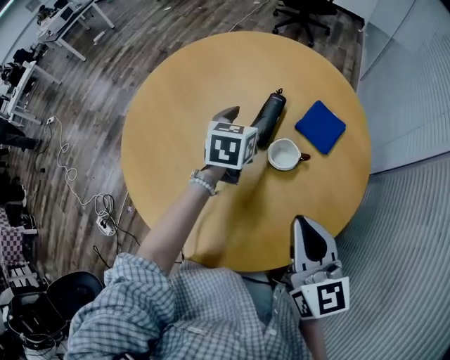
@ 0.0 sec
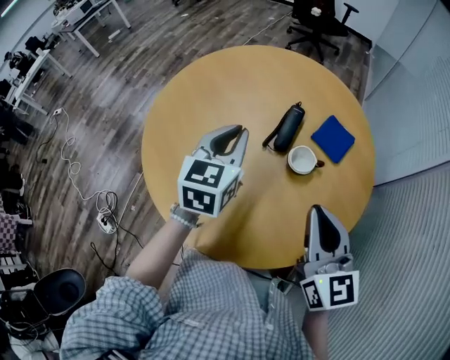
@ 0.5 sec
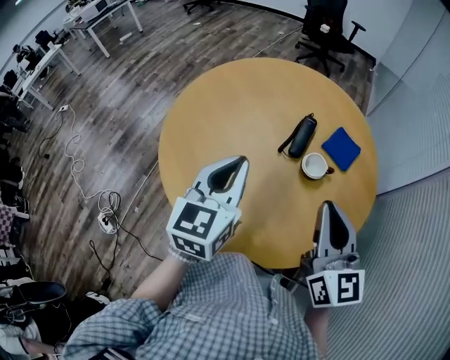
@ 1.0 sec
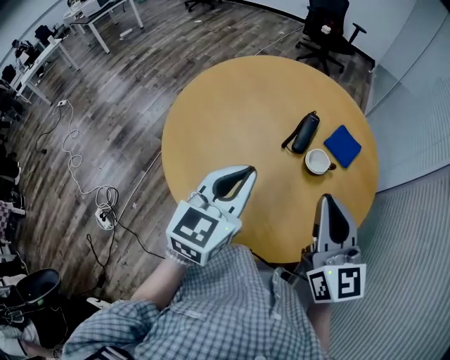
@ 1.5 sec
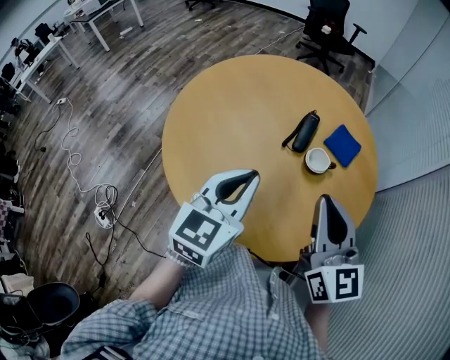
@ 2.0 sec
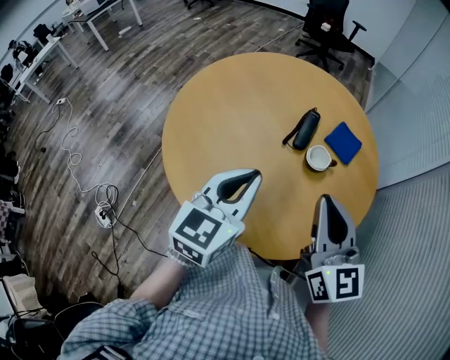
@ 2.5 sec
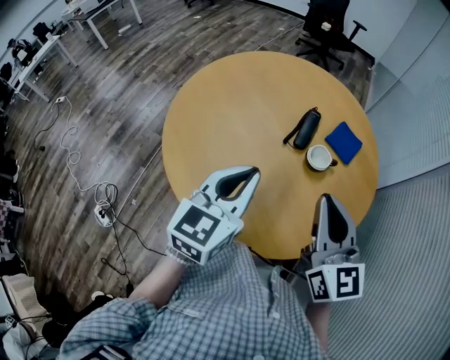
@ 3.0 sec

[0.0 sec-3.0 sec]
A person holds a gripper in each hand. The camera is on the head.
0.0 sec to 1.5 sec: The right gripper moves to the left and upward, approximately 15 cm. The left gripper is displaced backward, upward and to the left by some 35 cm, turns by about 20 degrees, and closes its fingers.
1.5 sec to 3.0 sec: There are only small adjustments of the grippers.

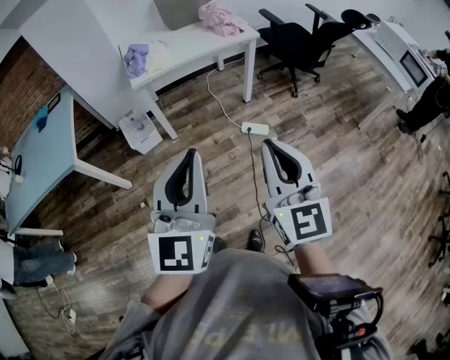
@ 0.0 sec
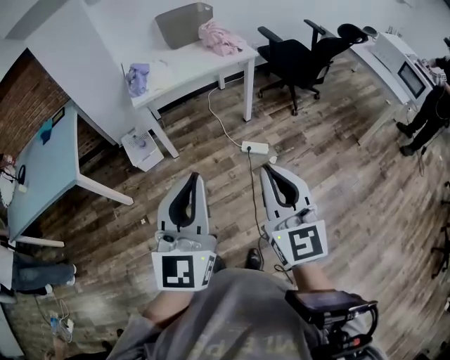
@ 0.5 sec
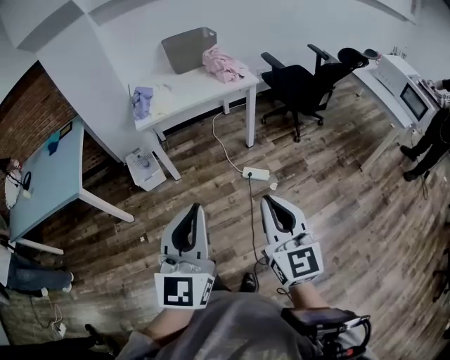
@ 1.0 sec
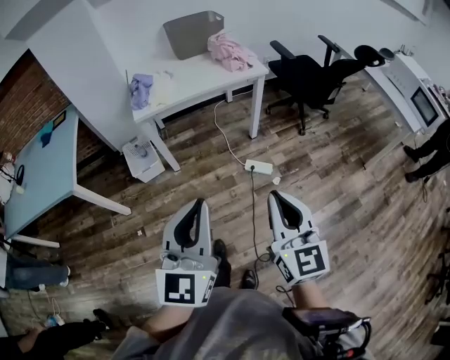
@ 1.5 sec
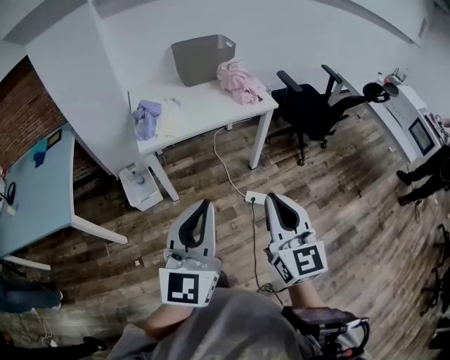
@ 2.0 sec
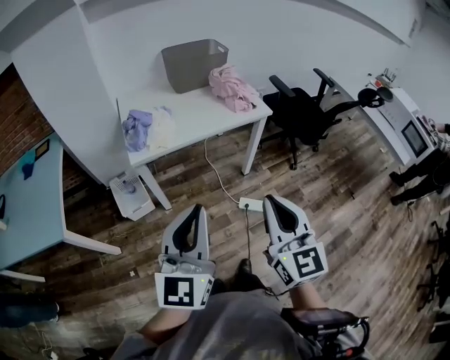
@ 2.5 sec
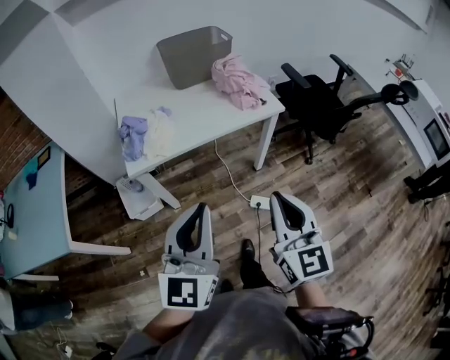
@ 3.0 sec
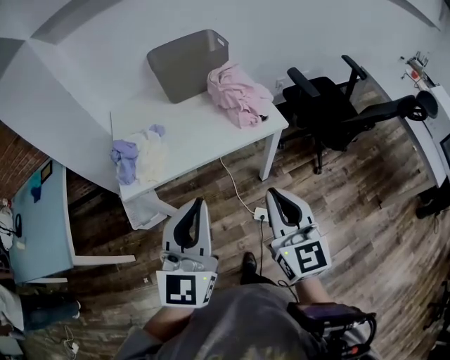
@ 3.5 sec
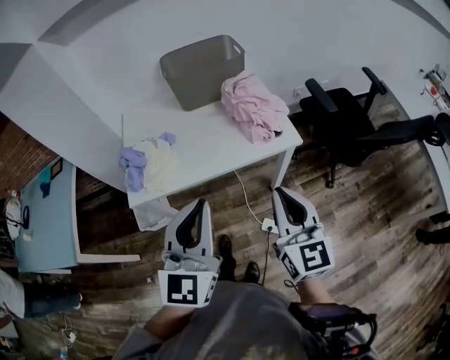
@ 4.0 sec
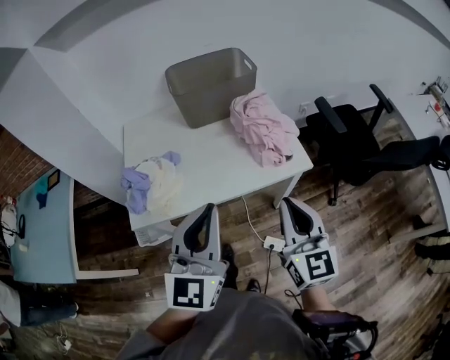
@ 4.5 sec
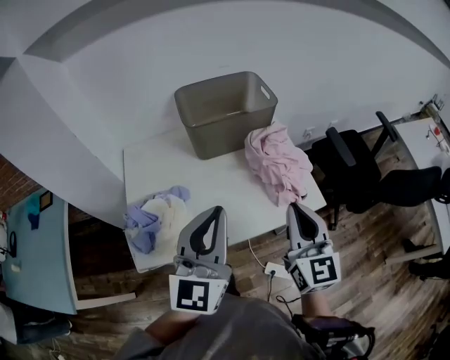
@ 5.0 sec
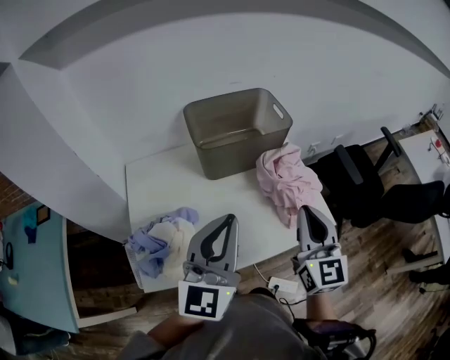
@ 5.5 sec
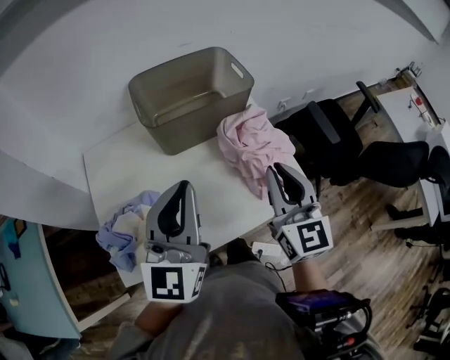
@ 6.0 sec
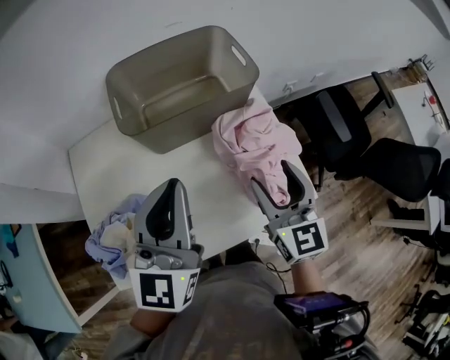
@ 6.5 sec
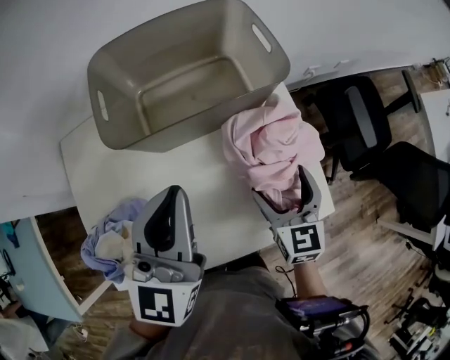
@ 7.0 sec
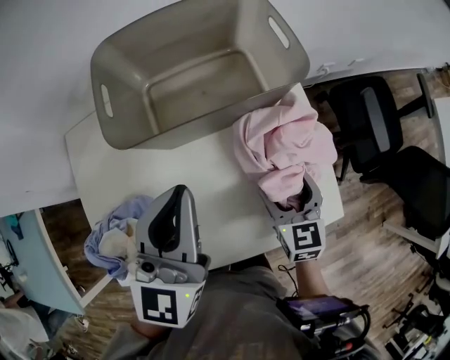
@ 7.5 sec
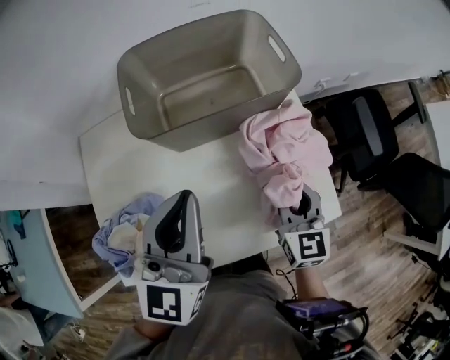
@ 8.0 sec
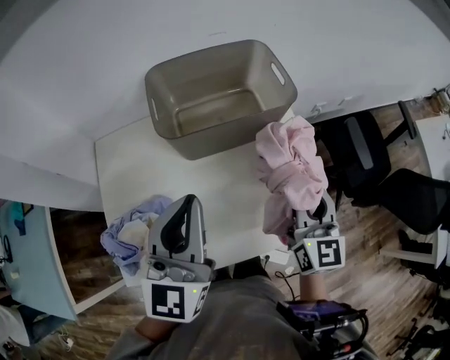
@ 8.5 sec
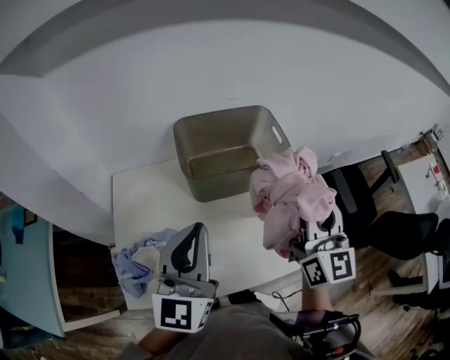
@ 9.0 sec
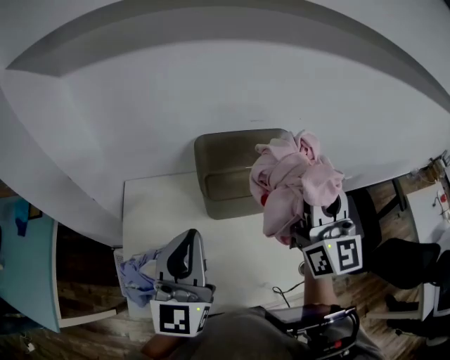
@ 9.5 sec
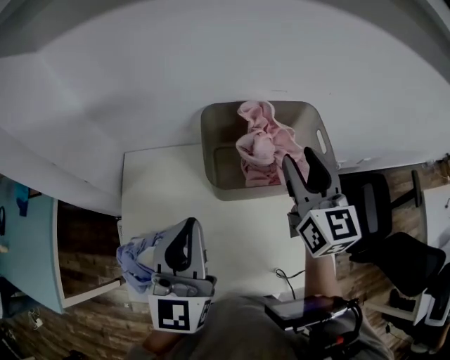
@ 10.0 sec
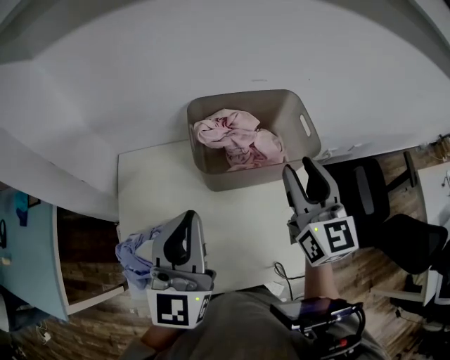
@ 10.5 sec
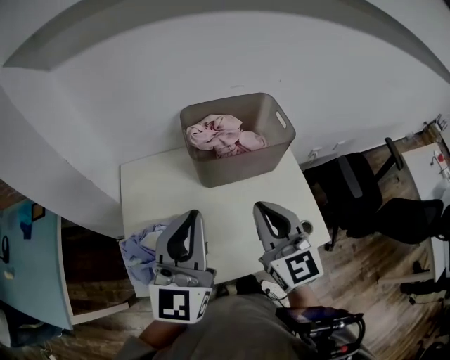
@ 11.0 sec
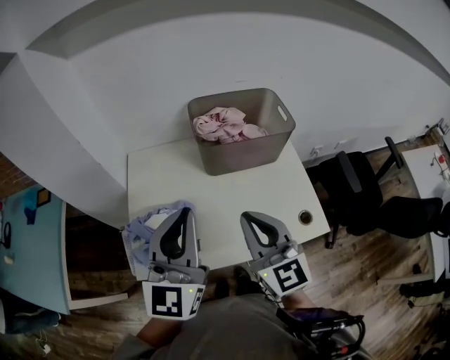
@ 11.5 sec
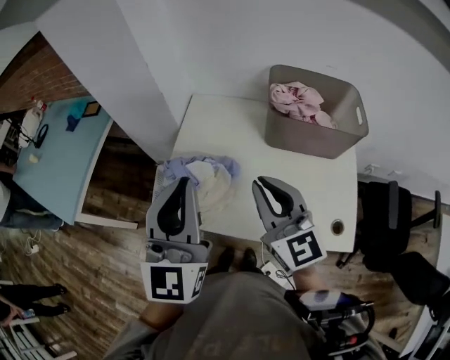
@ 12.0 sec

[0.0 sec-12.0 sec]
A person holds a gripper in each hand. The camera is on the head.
0.0 sec to 2.0 sec: Both grippers travel together forward, about 20 cm.
2.0 sec to 4.0 sec: Both grippers travel together forward, roughly 35 cm.
4.0 sec to 6.0 sec: Both grippers move forward, approximately 30 cm.
6.0 sec to 8.0 sec: The right gripper travels downward and forward by some 20 cm, and opens, then closes once more. The left gripper moves forward and downward, roughly 10 cm.
8.0 sec to 10.0 sec: The right gripper heads upward, forward and to the left, covering roughly 30 cm, and turns by about 20 degrees, while the left gripper travels to the left and upward by roughly 15 cm.
10.0 sec to 12.0 sec: The right gripper ends up about 30 cm from where it was, changes its angle by approximately 30 degrees, and closes up; the left gripper ends up some 25 cm from where it was, and turns by roughly 20 degrees.

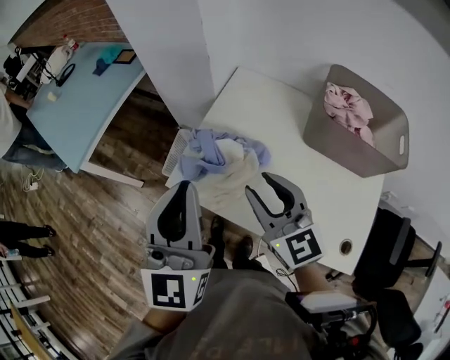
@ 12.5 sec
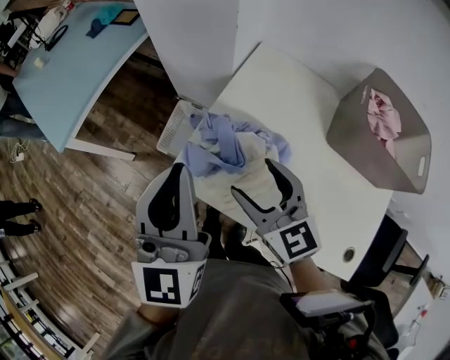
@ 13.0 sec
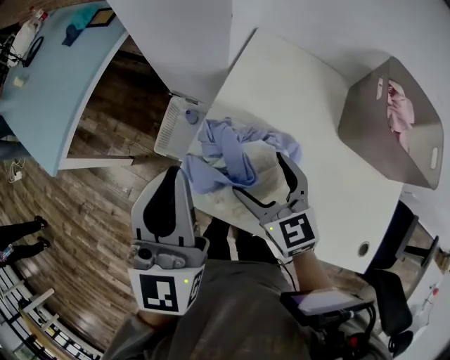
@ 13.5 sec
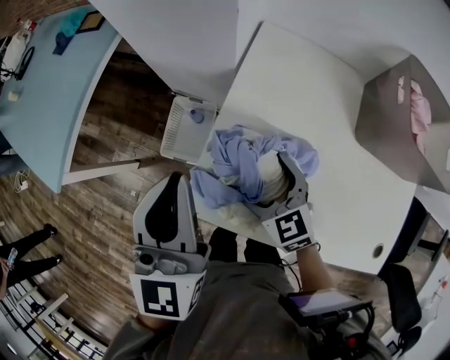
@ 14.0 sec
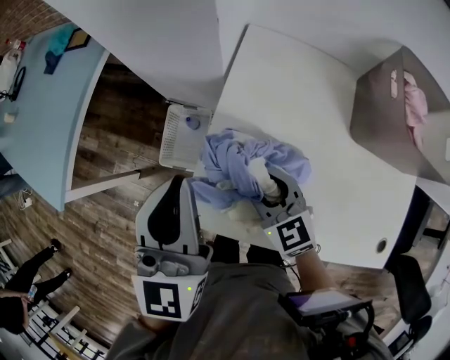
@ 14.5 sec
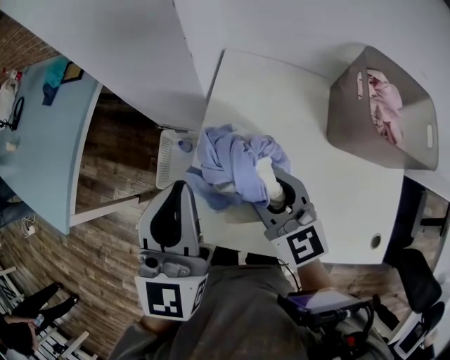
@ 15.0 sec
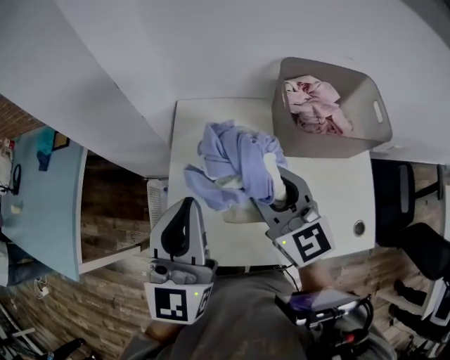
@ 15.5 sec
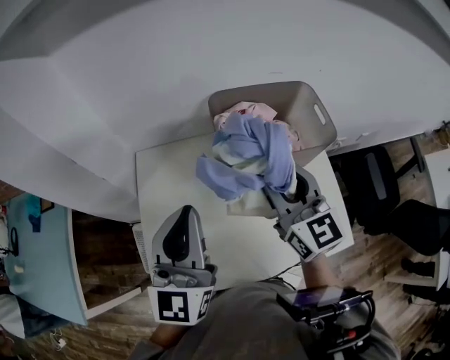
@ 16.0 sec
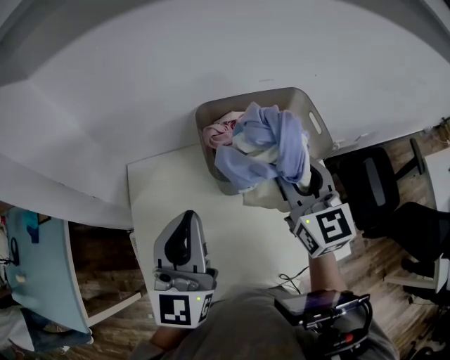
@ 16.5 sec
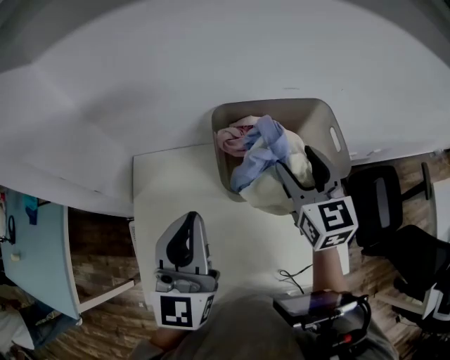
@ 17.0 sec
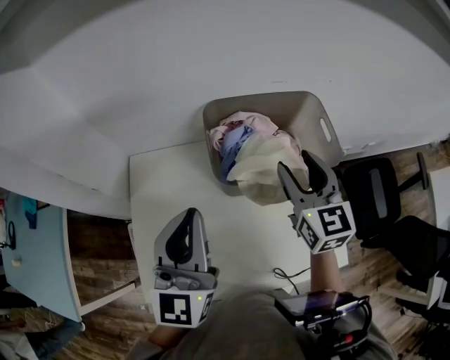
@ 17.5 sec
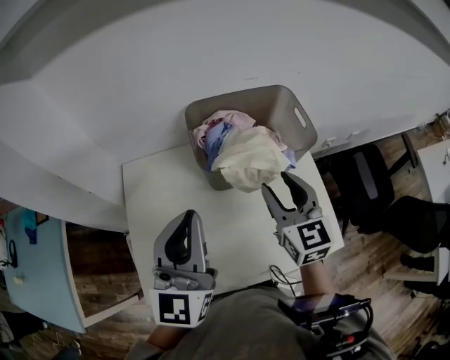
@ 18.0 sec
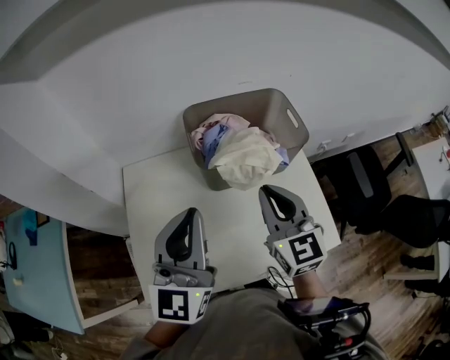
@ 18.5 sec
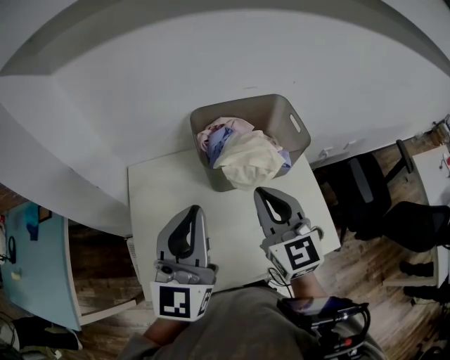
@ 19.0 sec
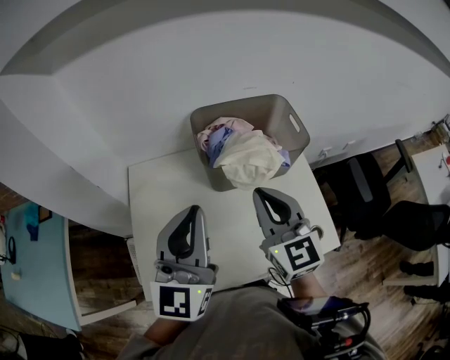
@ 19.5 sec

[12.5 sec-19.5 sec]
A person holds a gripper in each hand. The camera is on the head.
12.5 sec to 14.5 sec: The left gripper shifts approximately 25 cm forward and downward; the right gripper is displaced downward and forward by roughly 25 cm, swivels approximately 20 degrees, and opens and closes again.
14.5 sec to 16.0 sec: The left gripper moves roughly 30 cm, and swivels some 30 degrees. Meanwhile the right gripper moves about 40 cm, and changes its angle by approximately 50 degrees.
16.0 sec to 17.5 sec: The right gripper travels forward and to the right by approximately 10 cm; the left gripper moves roughly 5 cm.
17.5 sec to 19.5 sec: The right gripper shifts roughly 15 cm backward, and closes; the left gripper travels backward by approximately 10 cm.

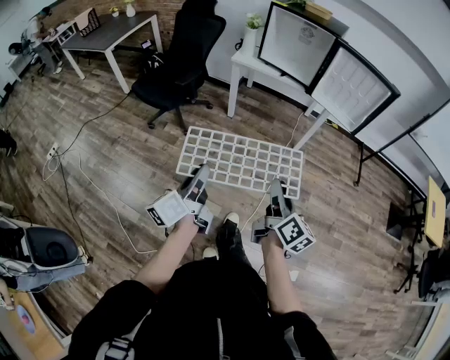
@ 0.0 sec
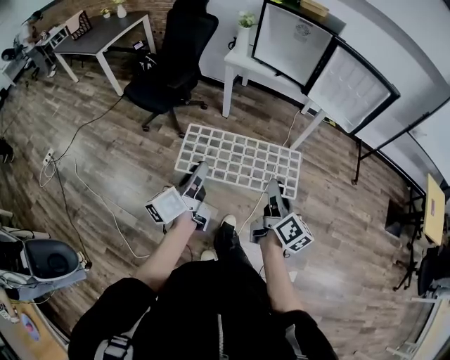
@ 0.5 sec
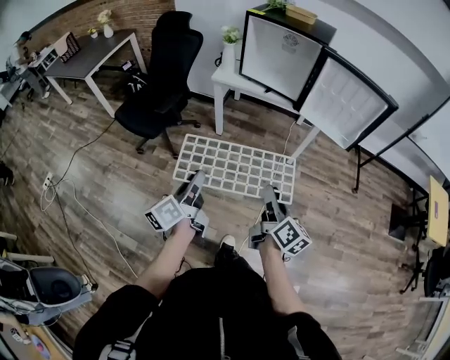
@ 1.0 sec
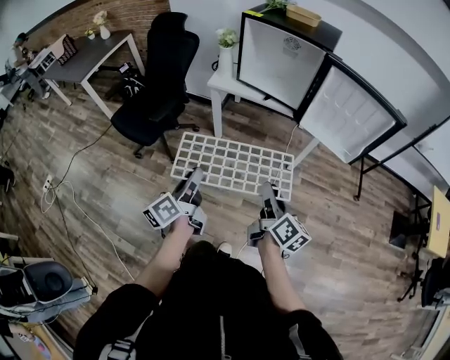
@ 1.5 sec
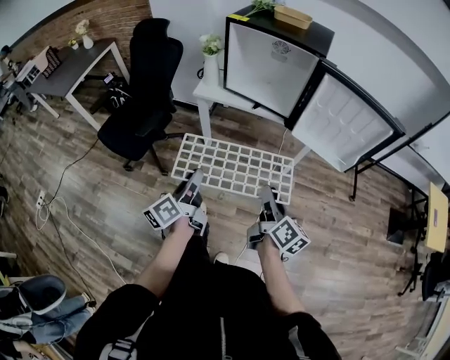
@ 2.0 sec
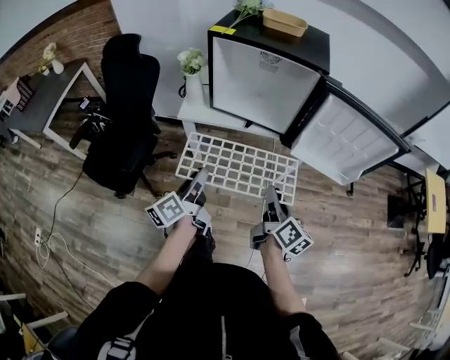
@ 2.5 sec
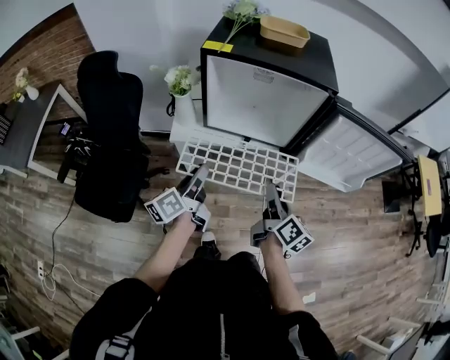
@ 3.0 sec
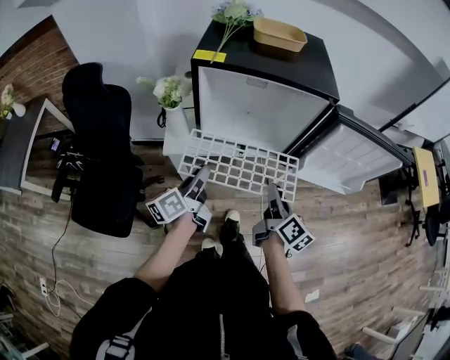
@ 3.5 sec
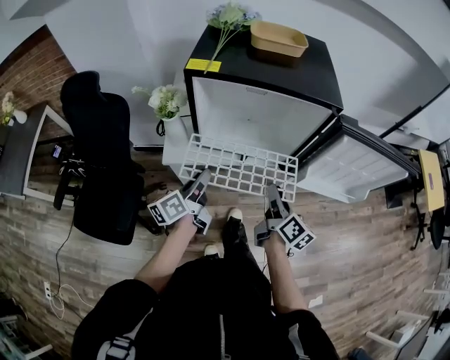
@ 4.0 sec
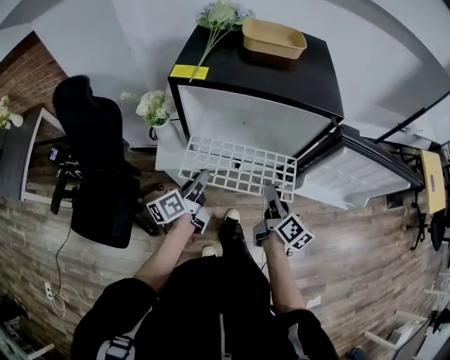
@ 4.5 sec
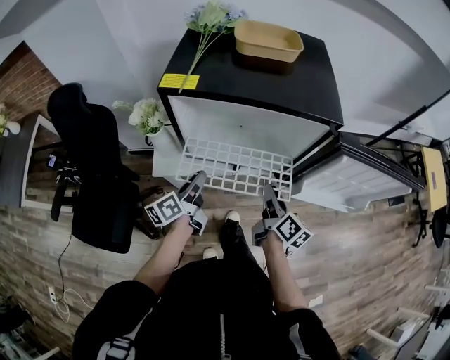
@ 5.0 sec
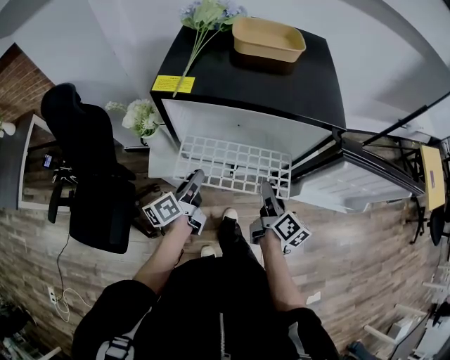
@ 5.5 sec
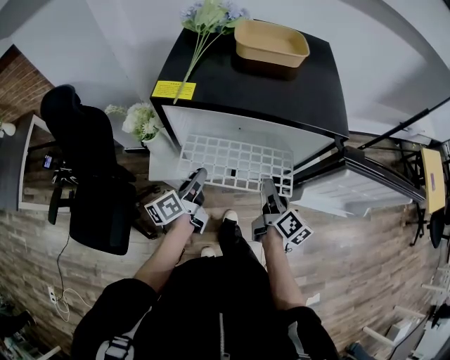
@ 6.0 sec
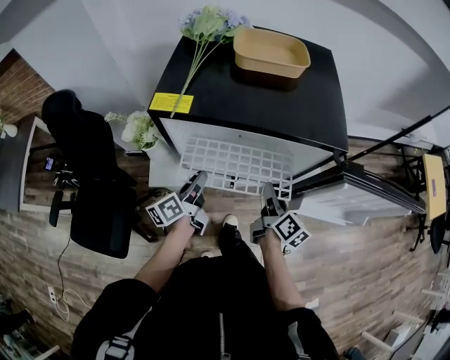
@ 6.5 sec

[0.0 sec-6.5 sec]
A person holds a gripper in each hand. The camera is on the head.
0.0 sec to 2.0 sec: Both grippers move forward, roughly 35 cm.
2.0 sec to 4.5 sec: The grippers both shift forward by roughly 40 cm. The left gripper swivels some 30 degrees.
4.5 sec to 6.5 sec: Both grippers travel together forward, roughly 10 cm.
